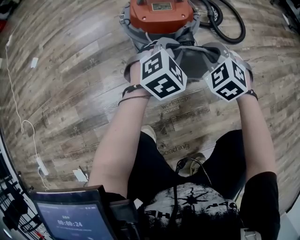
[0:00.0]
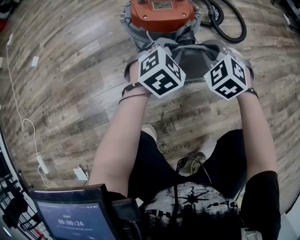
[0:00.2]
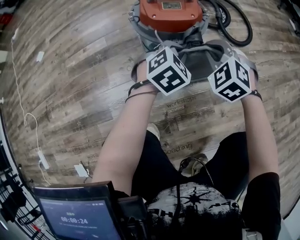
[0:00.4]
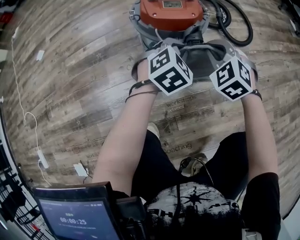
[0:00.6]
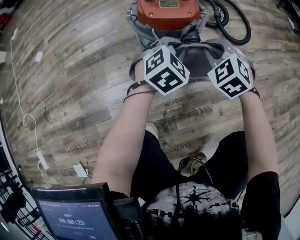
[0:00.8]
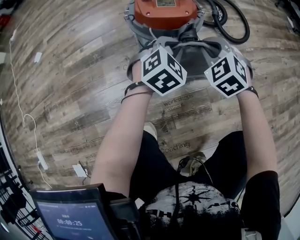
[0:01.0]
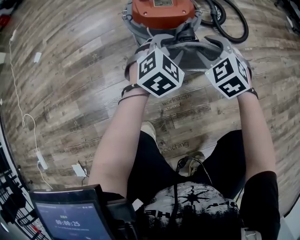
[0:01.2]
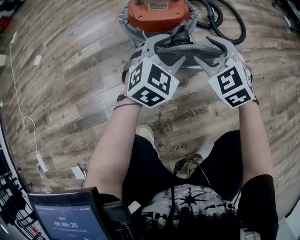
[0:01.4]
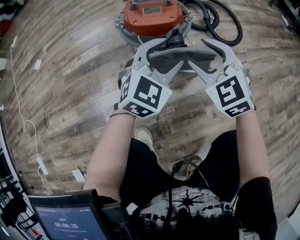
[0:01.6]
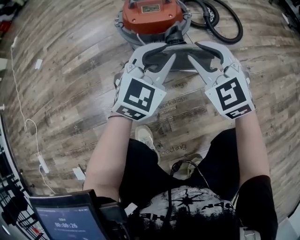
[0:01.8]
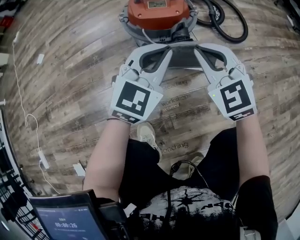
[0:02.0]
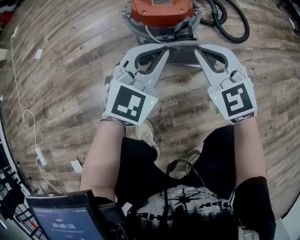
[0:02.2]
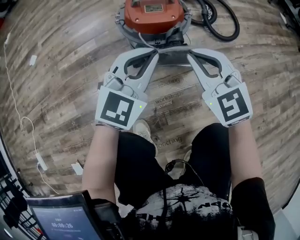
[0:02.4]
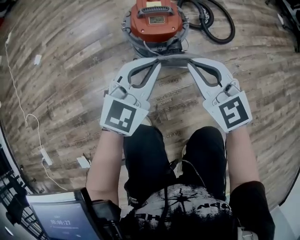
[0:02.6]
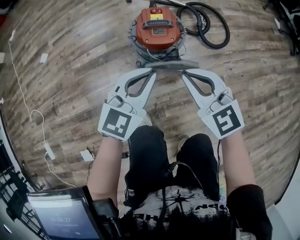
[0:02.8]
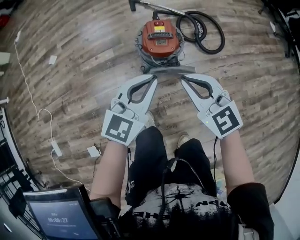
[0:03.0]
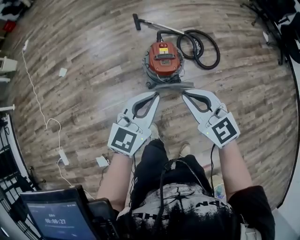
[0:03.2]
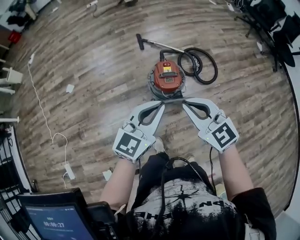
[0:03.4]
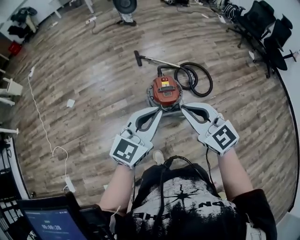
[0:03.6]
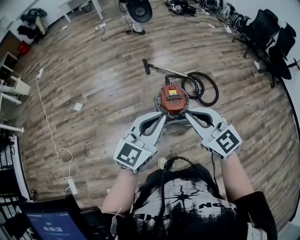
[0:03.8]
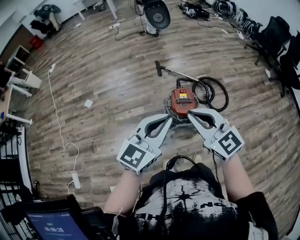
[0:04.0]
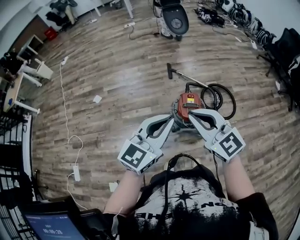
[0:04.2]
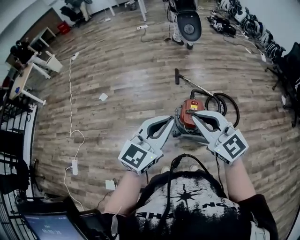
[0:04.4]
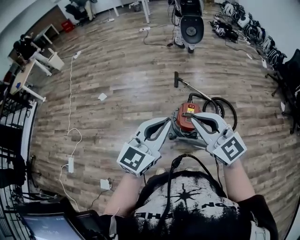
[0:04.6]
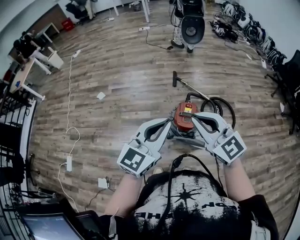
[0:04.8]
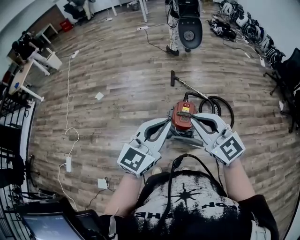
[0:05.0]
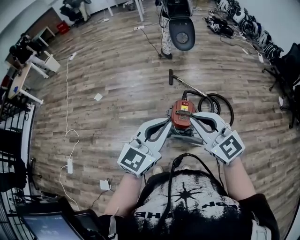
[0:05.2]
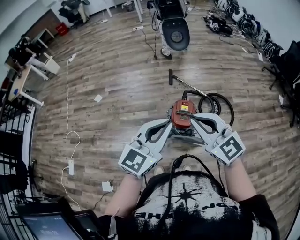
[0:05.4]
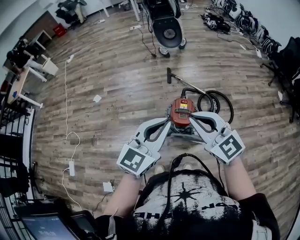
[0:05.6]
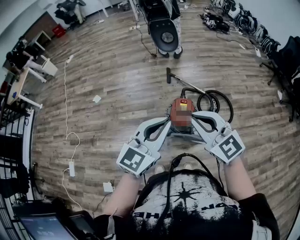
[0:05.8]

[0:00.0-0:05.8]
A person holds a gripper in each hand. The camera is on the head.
0:00.0 to 0:01.4: The right gripper opens up. Meanwhile the left gripper opens.
0:01.4 to 0:02.8: Both grippers move upward, roughly 25 cm. The right gripper changes its angle by approximately 20 degrees, and closes up. Meanwhile the left gripper closes up.
0:02.8 to 0:04.4: Both grippers travel together upward, approximately 40 cm. The right gripper changes its angle by approximately 20 degrees.
0:04.4 to 0:05.8: The two grippers go approximately 10 cm to the right.

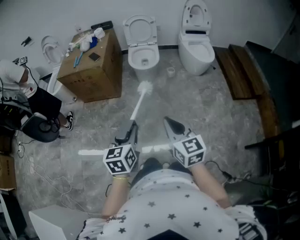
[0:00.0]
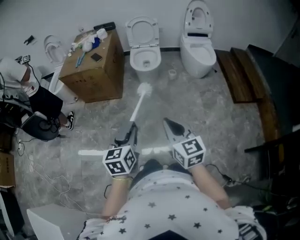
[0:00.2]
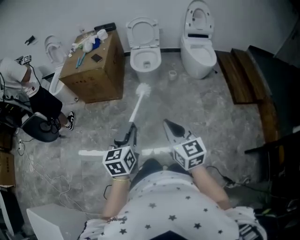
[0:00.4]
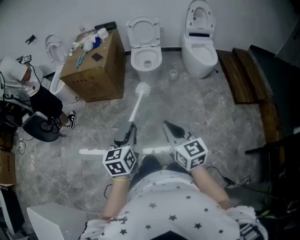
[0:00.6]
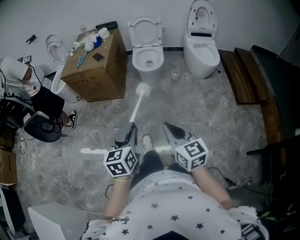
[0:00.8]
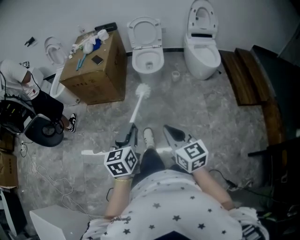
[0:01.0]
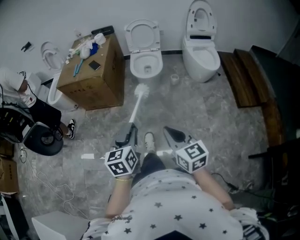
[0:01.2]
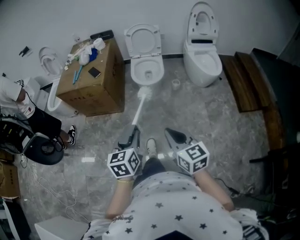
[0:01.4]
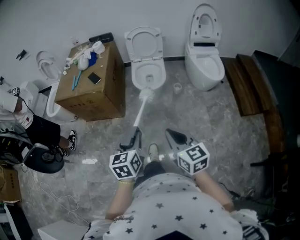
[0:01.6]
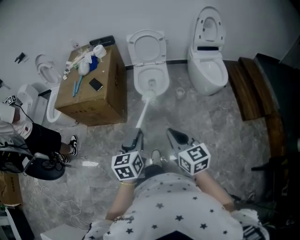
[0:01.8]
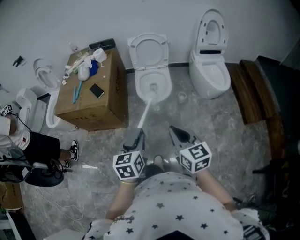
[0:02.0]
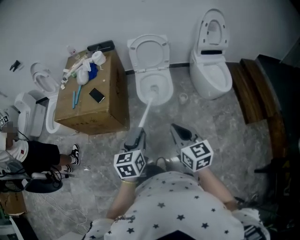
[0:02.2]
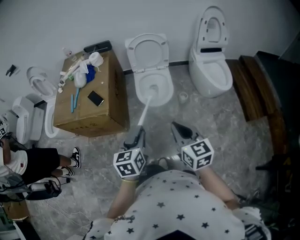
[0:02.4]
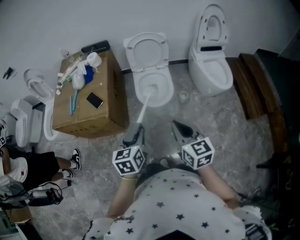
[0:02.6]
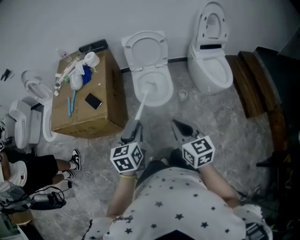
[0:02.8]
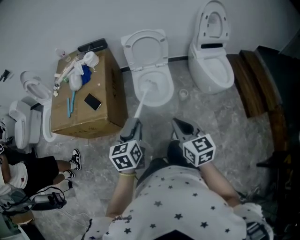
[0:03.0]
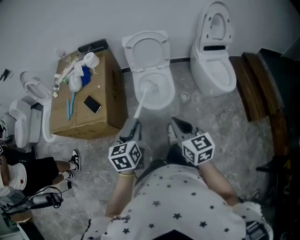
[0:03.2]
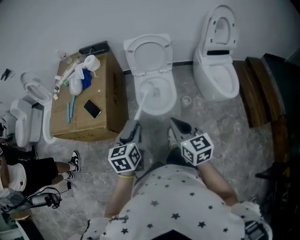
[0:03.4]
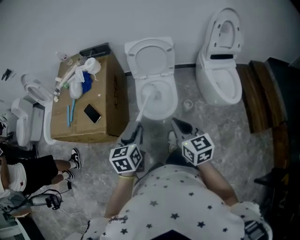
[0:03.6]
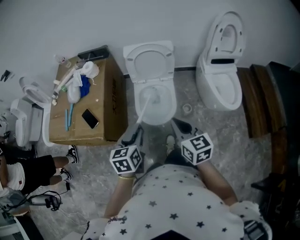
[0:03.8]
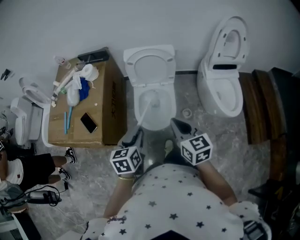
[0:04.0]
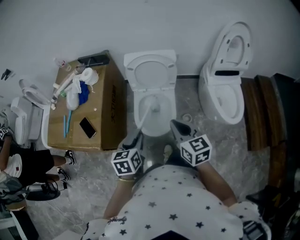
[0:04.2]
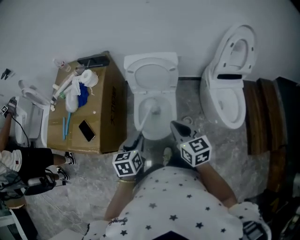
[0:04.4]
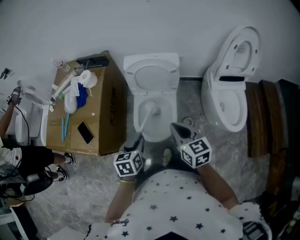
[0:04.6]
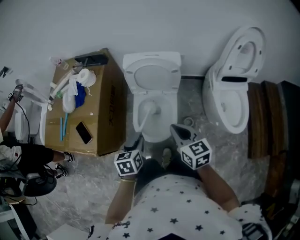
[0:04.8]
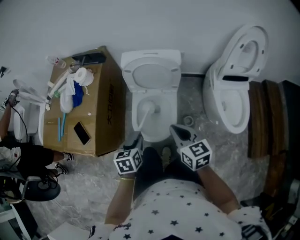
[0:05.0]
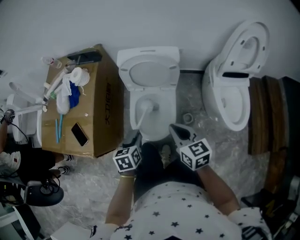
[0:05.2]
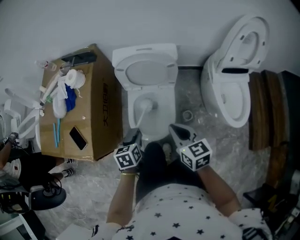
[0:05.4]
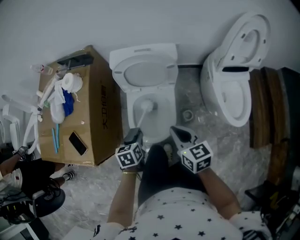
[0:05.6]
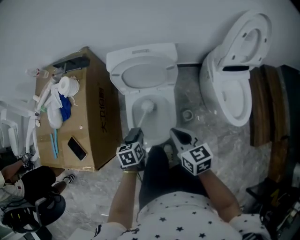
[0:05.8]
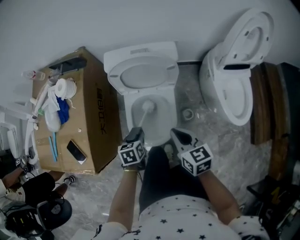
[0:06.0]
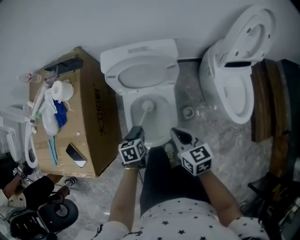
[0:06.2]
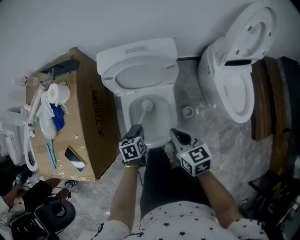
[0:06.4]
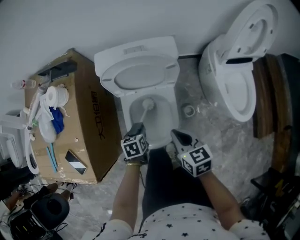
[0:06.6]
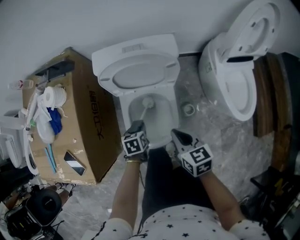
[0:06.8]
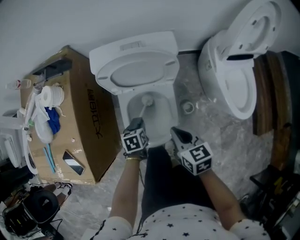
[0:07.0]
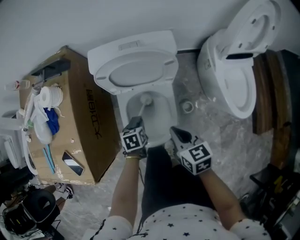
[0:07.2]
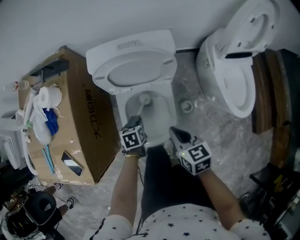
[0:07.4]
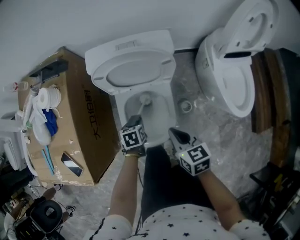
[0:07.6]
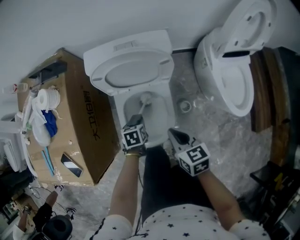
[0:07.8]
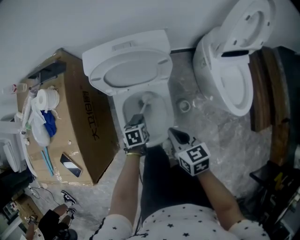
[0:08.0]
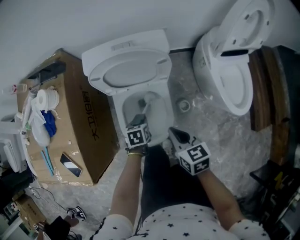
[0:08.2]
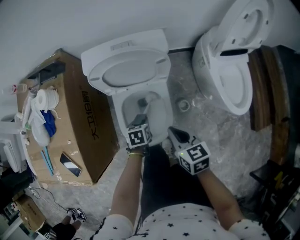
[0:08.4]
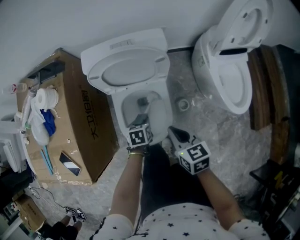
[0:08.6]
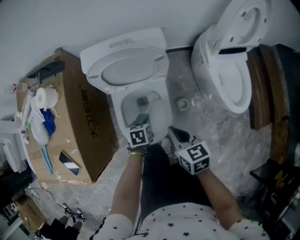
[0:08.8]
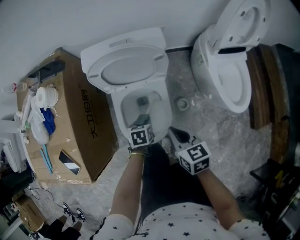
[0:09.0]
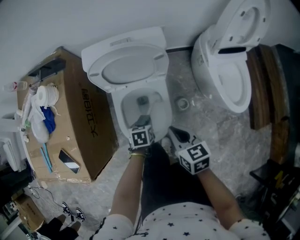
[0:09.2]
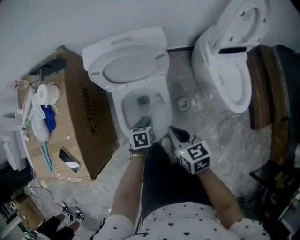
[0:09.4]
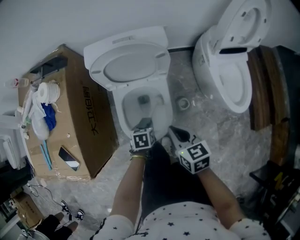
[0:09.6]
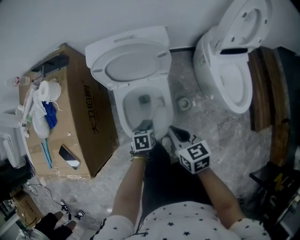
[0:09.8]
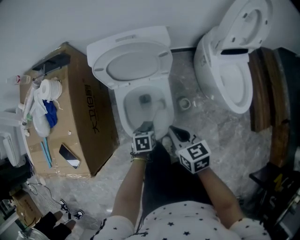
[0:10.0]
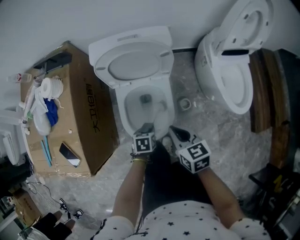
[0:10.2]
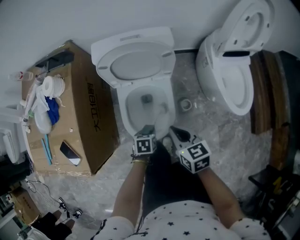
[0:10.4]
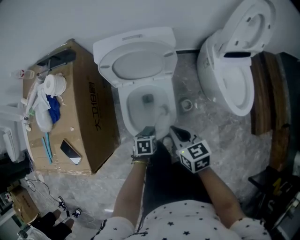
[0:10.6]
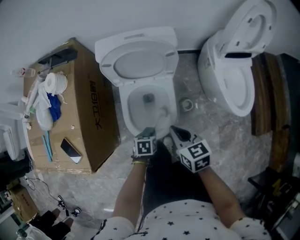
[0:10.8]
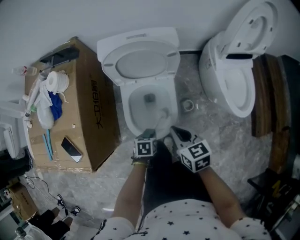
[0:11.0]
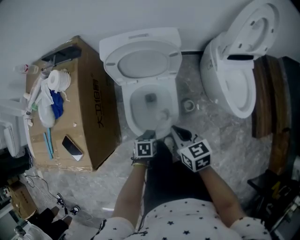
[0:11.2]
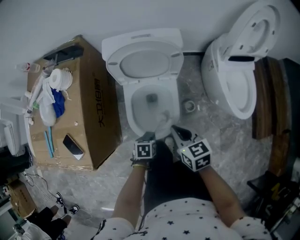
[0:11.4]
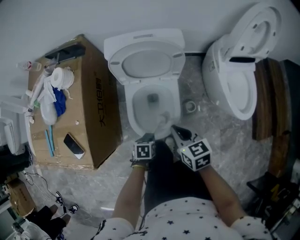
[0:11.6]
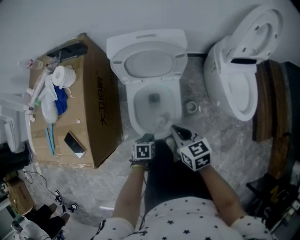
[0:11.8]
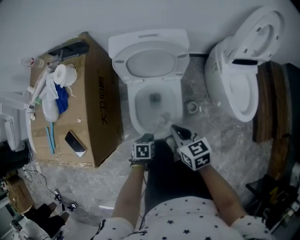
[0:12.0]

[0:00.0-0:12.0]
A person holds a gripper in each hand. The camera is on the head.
0:00.0 to 0:01.6: Both grippers move forward, some 20 cm.
0:01.6 to 0:03.0: Both grippers move forward, approximately 30 cm.
0:03.0 to 0:04.4: The right gripper heads forward, covering approximately 30 cm. The left gripper moves forward and to the right, approximately 25 cm.
0:04.4 to 0:06.0: The right gripper heads downward and forward, covering some 15 cm. Meanwhile the left gripper is displaced downward and forward by approximately 25 cm.
0:06.0 to 0:07.6: The left gripper is displaced downward and forward by roughly 10 cm. Meanwhile the right gripper is displaced downward by approximately 5 cm.
0:07.6 to 0:09.0: The left gripper goes roughly 5 cm to the right.
0:09.0 to 0:10.4: The left gripper goes approximately 10 cm backward.
0:10.4 to 0:12.0: The left gripper moves backward, roughly 5 cm.

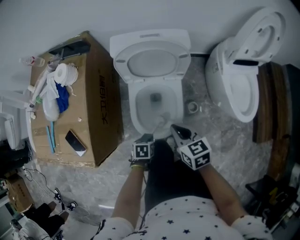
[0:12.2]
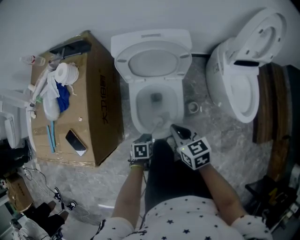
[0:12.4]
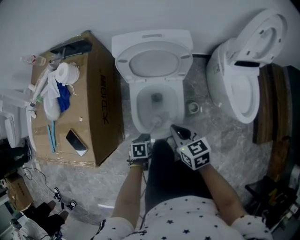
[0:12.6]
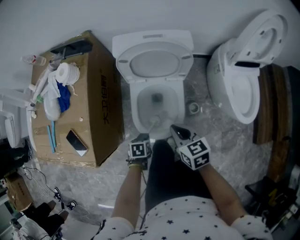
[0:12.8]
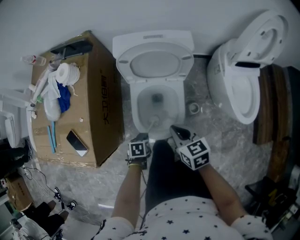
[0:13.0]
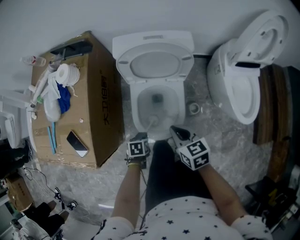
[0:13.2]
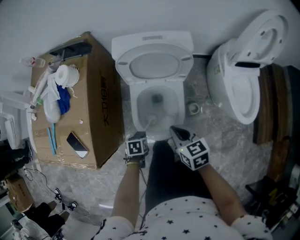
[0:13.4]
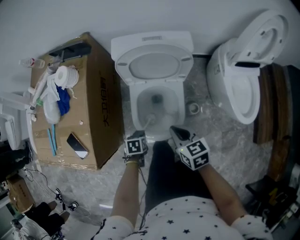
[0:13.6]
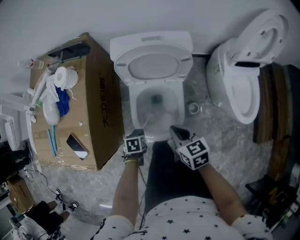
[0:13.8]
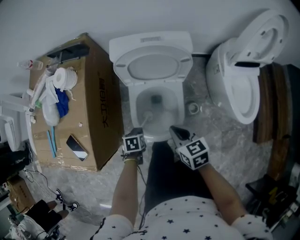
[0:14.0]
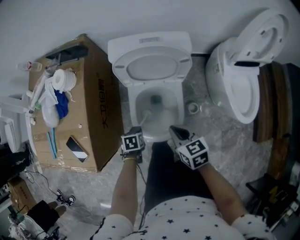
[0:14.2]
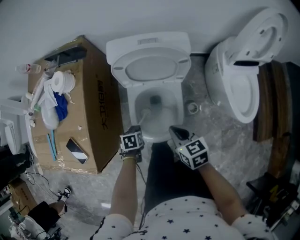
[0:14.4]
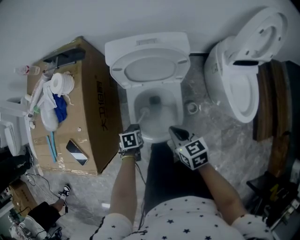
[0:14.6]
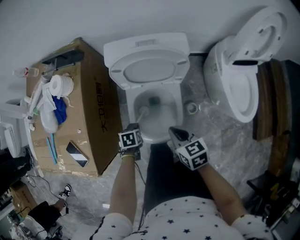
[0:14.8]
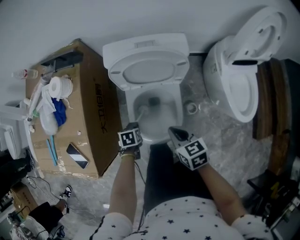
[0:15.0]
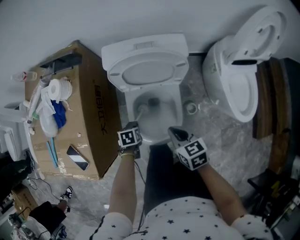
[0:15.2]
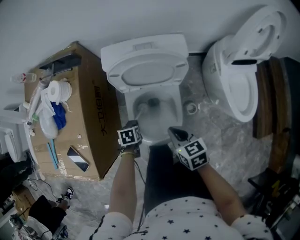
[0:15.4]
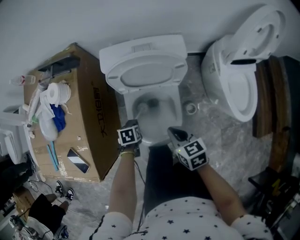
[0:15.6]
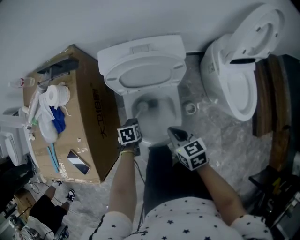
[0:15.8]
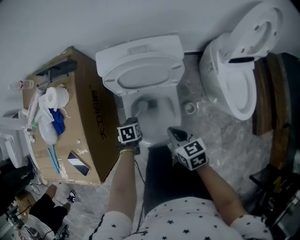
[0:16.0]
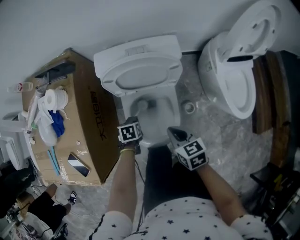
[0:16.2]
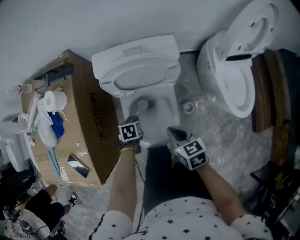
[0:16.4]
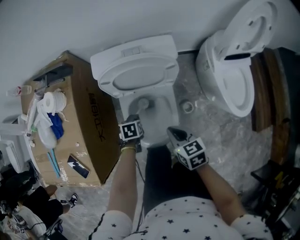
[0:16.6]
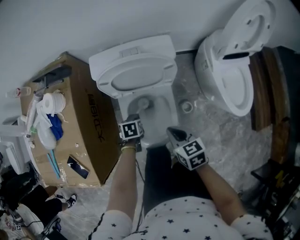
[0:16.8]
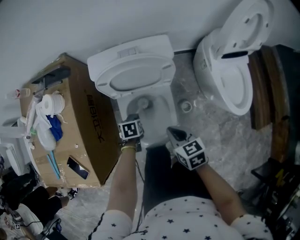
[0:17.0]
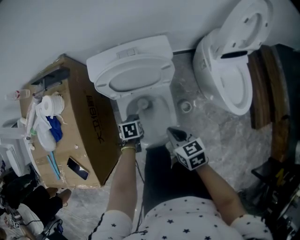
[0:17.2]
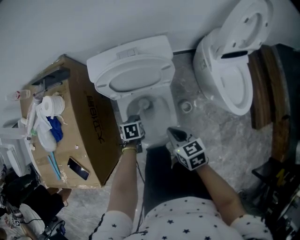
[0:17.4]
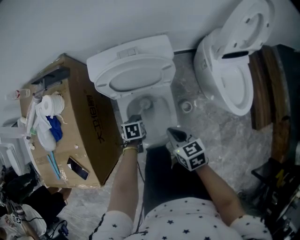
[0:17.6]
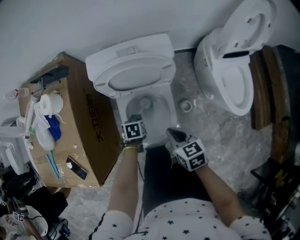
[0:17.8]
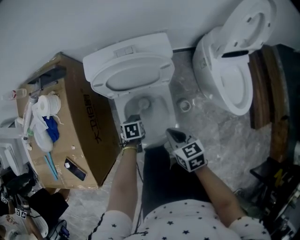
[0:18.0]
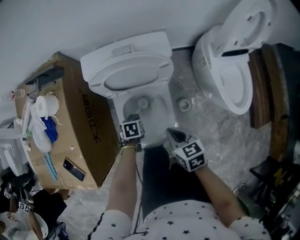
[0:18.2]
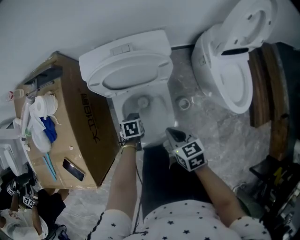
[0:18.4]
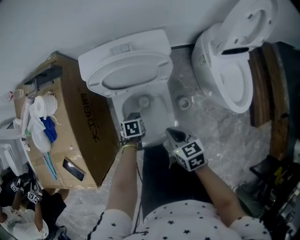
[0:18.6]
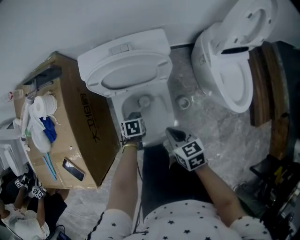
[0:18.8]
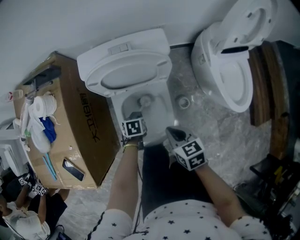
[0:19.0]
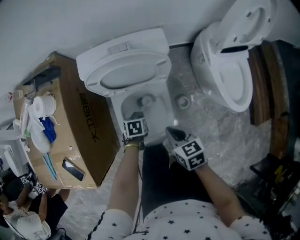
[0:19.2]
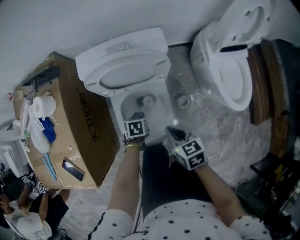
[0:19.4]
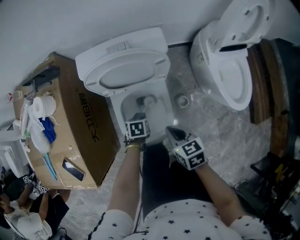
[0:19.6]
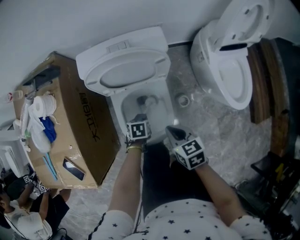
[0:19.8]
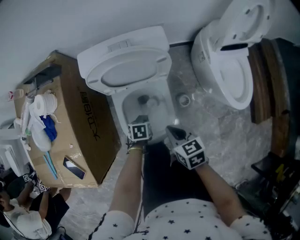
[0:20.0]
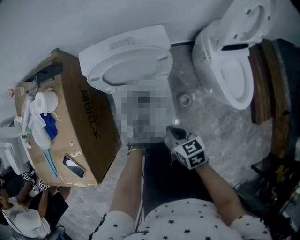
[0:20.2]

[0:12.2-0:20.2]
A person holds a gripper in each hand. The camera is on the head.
0:12.2 to 0:13.8: The left gripper shifts by approximately 10 cm.
0:13.8 to 0:15.4: The left gripper moves roughly 10 cm.
0:15.4 to 0:17.0: The left gripper is displaced to the right by some 5 cm.
0:17.0 to 0:18.6: The grippers move only a little.
0:18.6 to 0:20.2: The left gripper travels backward by approximately 5 cm.
